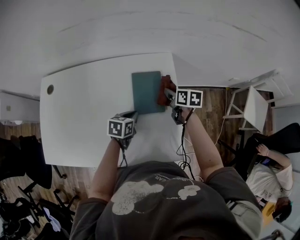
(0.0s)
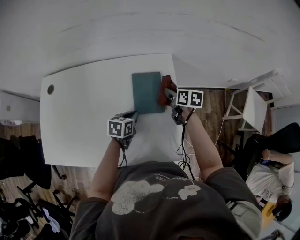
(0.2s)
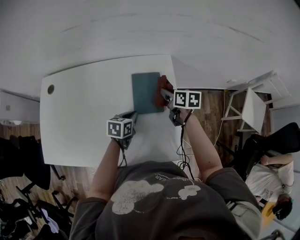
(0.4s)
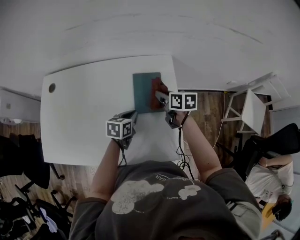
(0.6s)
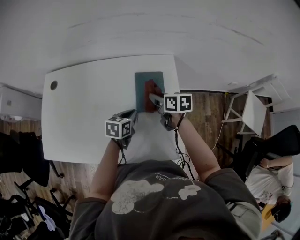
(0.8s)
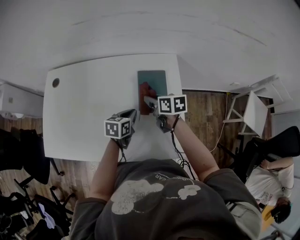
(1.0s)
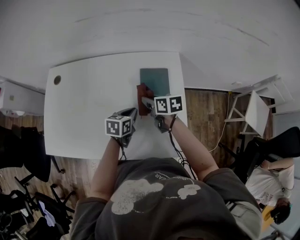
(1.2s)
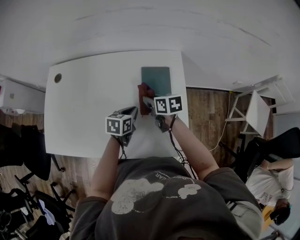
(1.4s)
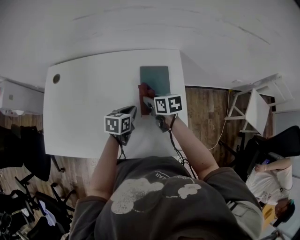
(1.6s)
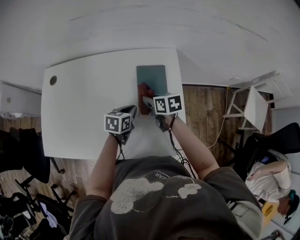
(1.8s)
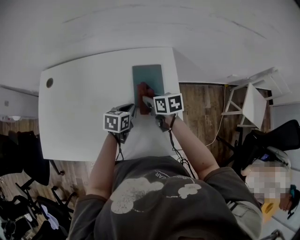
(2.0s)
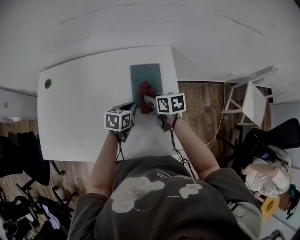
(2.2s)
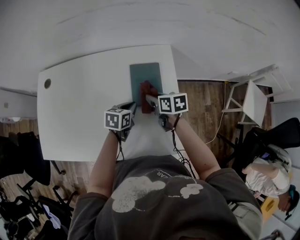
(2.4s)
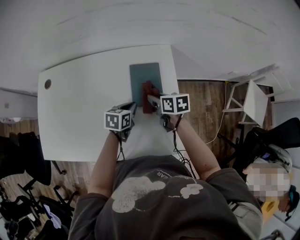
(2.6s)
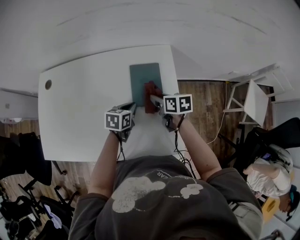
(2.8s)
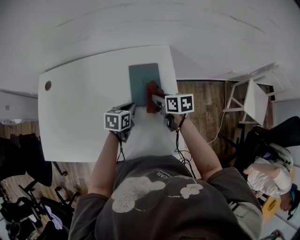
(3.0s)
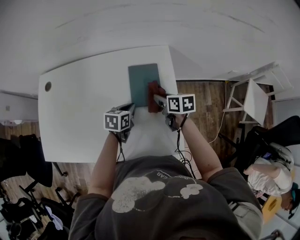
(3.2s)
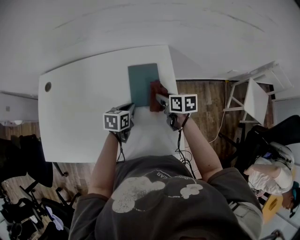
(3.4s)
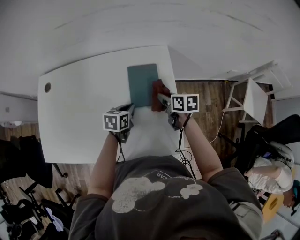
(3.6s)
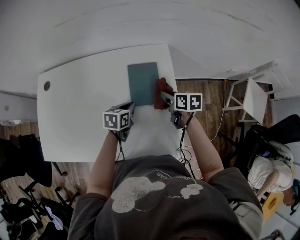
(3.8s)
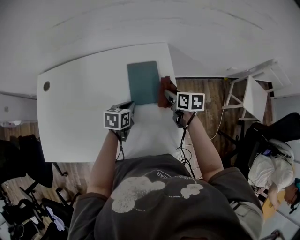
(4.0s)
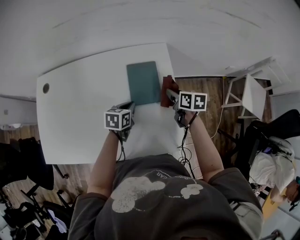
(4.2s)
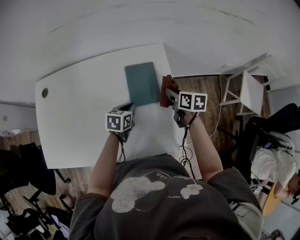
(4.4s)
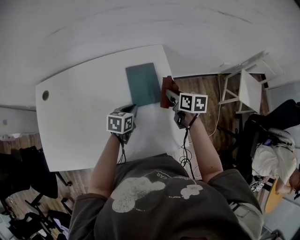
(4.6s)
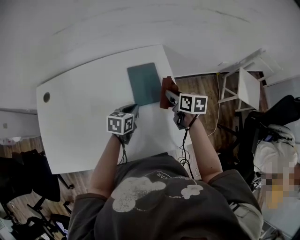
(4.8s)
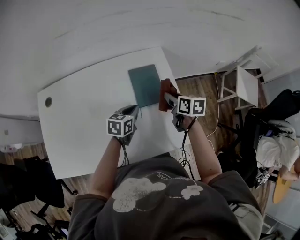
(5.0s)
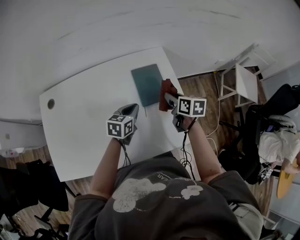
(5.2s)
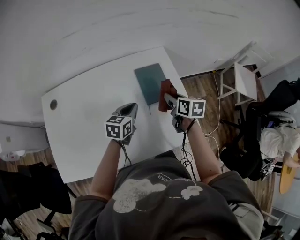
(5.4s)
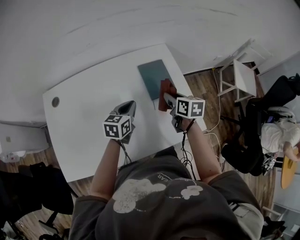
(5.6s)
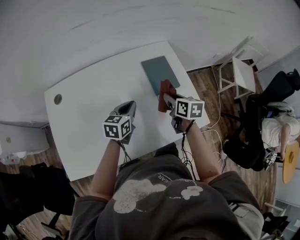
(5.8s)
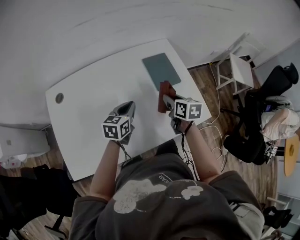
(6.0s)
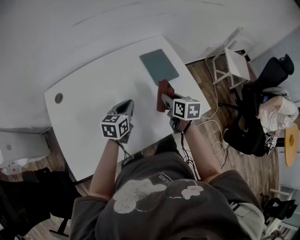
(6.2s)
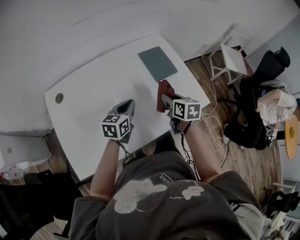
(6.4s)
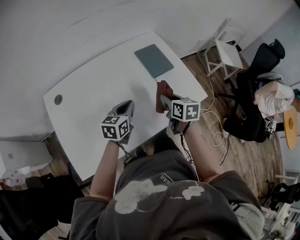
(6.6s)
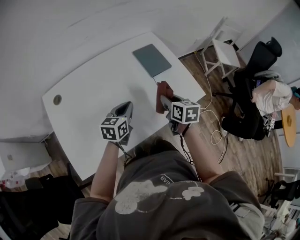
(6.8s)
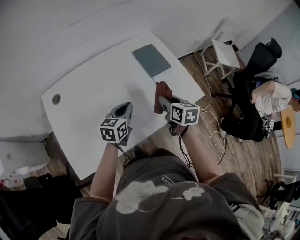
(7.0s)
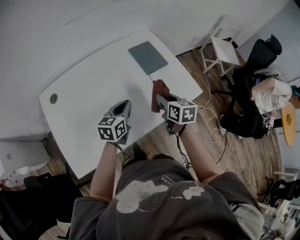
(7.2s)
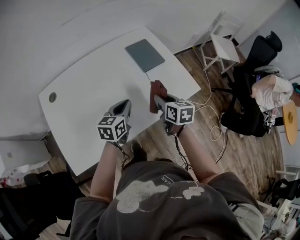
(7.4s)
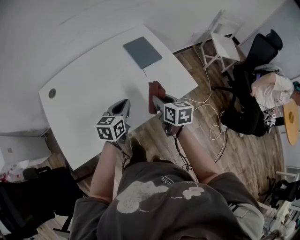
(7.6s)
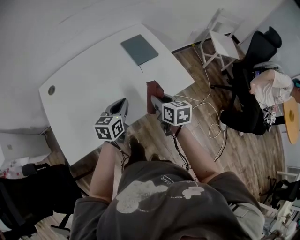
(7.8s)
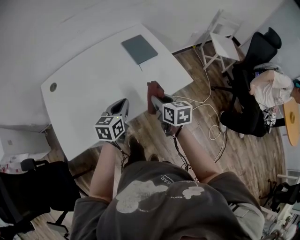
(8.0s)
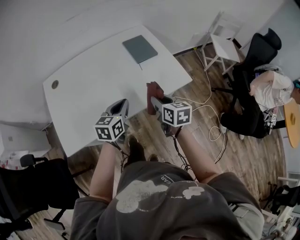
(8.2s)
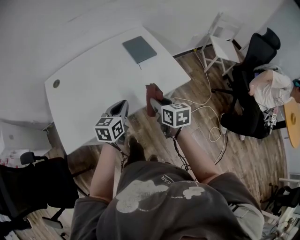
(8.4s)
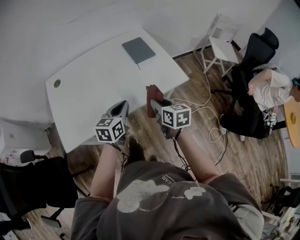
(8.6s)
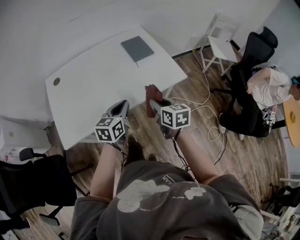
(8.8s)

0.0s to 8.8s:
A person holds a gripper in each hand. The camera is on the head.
0.0s to 1.4s: The left gripper shifts by some 5 cm; the right gripper moves to the left and backward, approximately 15 cm.
1.4s to 3.0s: The right gripper travels to the right by about 10 cm. Meanwhile the left gripper changes place by approximately 5 cm.
3.0s to 4.4s: The right gripper shifts roughly 10 cm to the right.
4.4s to 5.8s: The right gripper moves to the left and backward, roughly 20 cm. The left gripper travels to the left, upward and backward by approximately 20 cm.
5.8s to 7.4s: The grippers both shift backward by about 15 cm.
7.4s to 8.8s: The right gripper heads backward, covering some 15 cm; the left gripper travels backward and to the right by some 15 cm.

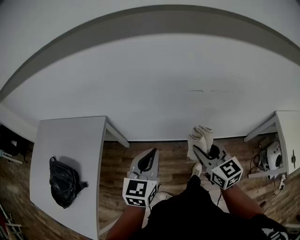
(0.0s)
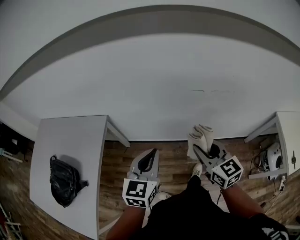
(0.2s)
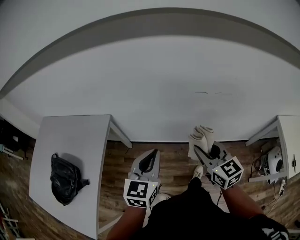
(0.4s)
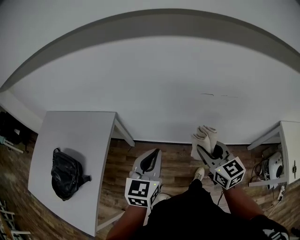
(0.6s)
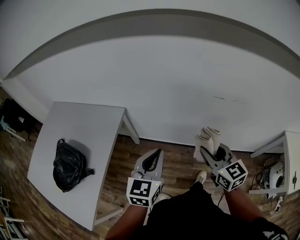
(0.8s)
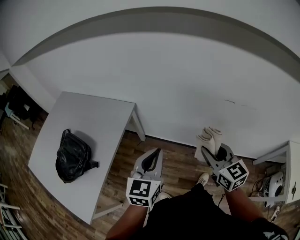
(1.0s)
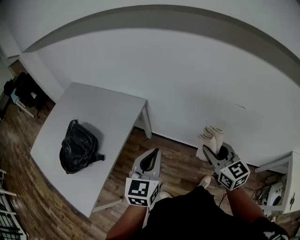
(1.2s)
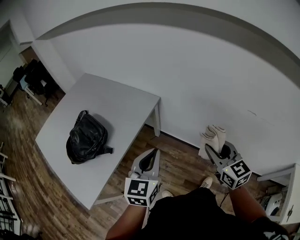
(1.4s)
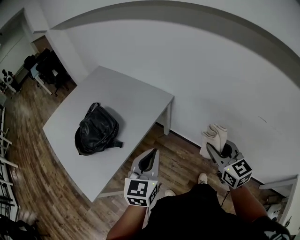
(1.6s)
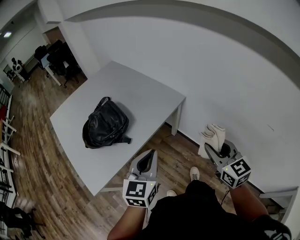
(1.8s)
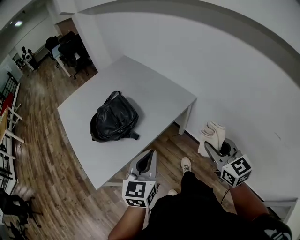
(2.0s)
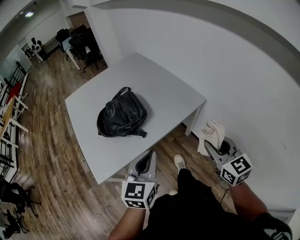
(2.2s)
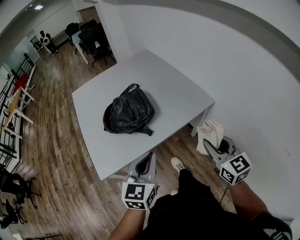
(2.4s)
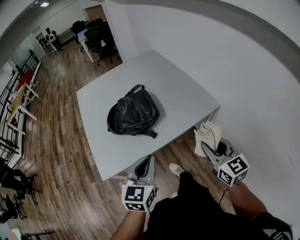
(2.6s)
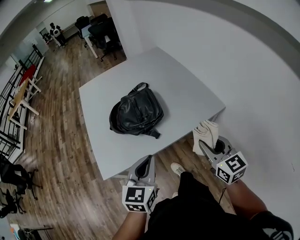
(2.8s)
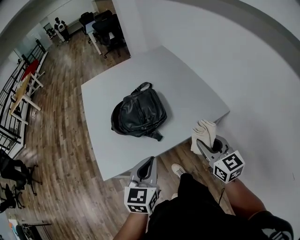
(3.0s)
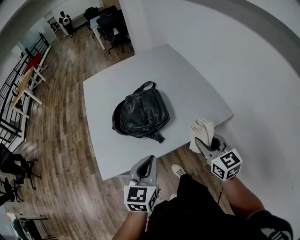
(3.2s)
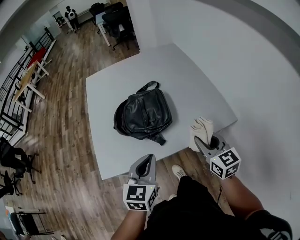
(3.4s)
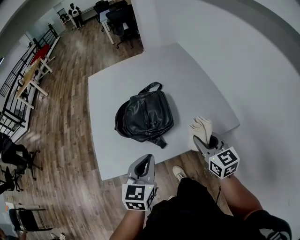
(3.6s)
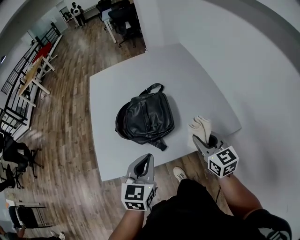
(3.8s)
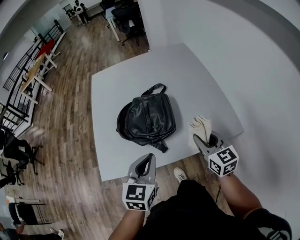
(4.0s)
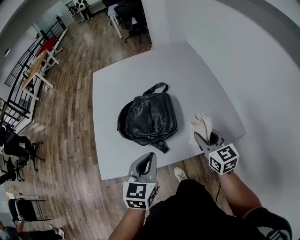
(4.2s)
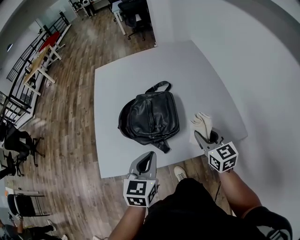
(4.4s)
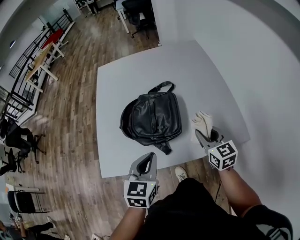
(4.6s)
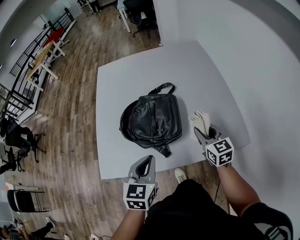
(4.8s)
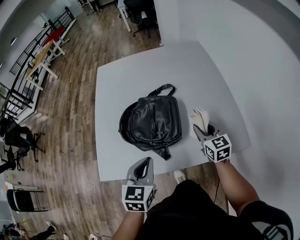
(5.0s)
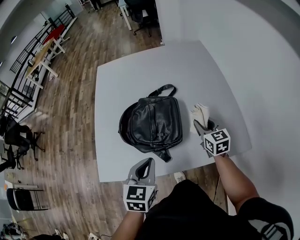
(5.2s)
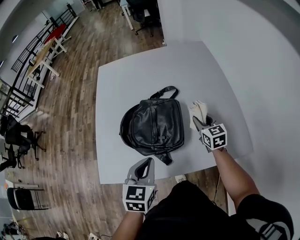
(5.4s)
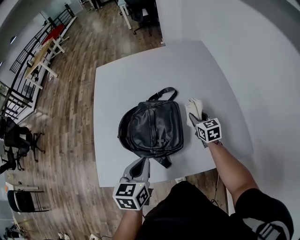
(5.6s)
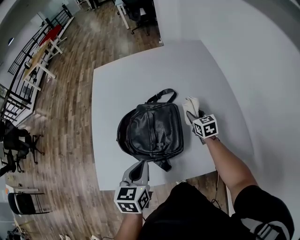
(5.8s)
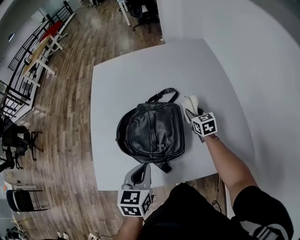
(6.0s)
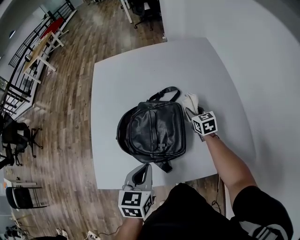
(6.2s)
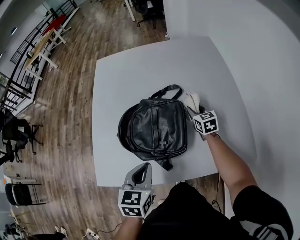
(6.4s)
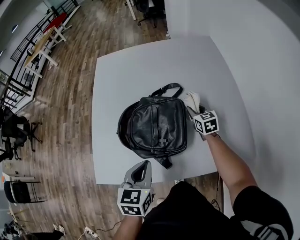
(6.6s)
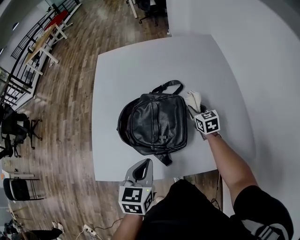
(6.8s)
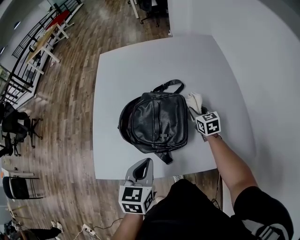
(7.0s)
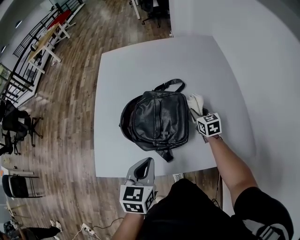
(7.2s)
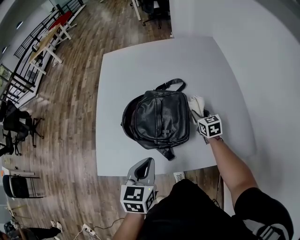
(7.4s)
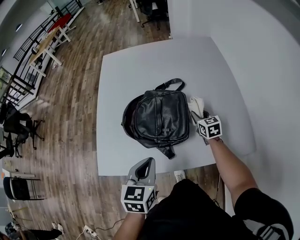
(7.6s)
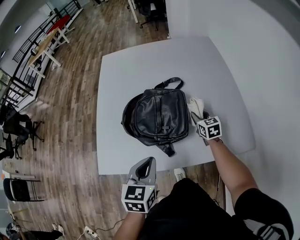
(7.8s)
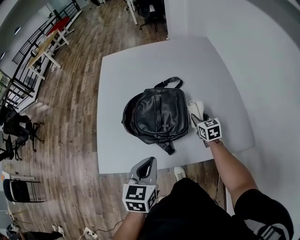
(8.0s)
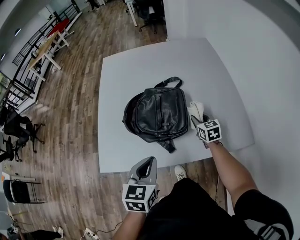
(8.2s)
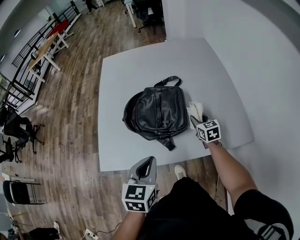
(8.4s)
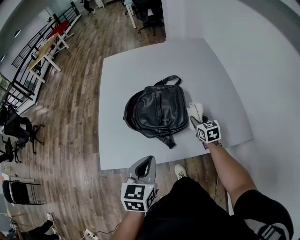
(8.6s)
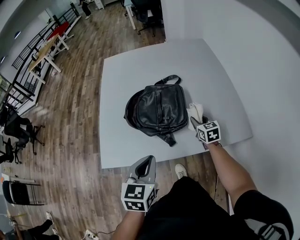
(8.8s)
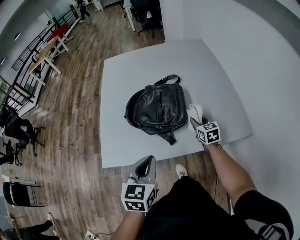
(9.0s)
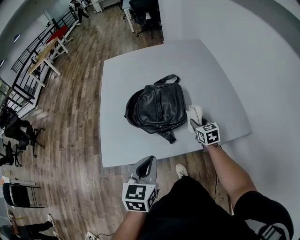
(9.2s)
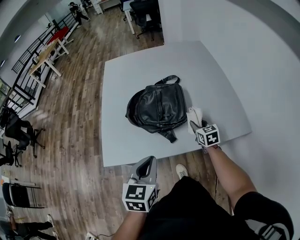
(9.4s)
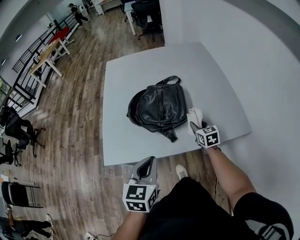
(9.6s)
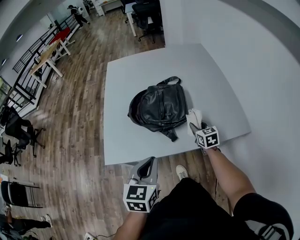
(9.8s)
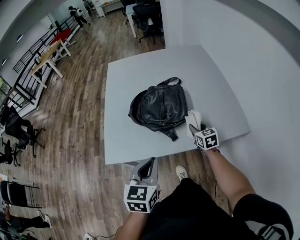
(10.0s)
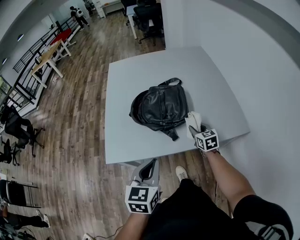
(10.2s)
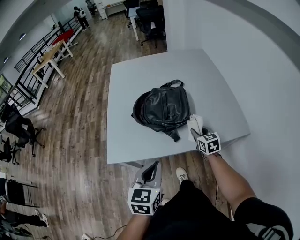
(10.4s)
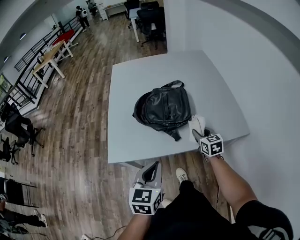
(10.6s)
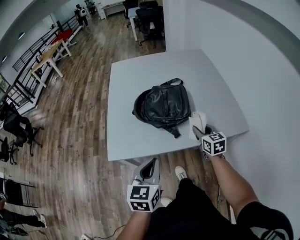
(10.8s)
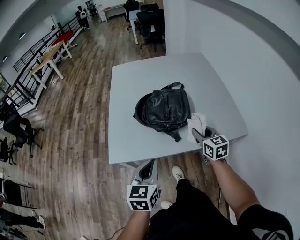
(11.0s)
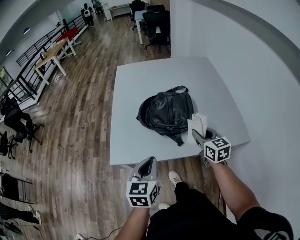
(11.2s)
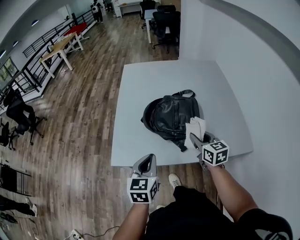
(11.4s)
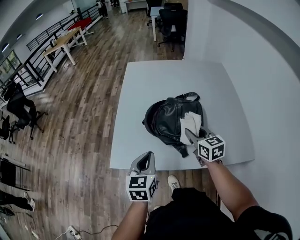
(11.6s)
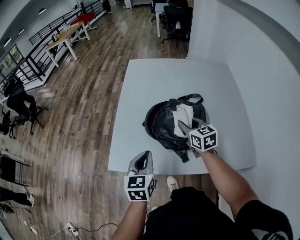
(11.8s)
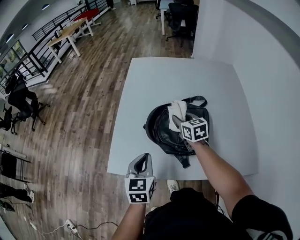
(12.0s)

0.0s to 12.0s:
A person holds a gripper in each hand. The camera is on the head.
0.0s to 1.6s: The left gripper changes place by roughly 30 cm, and swivels approximately 30 degrees; the right gripper shifts by about 25 cm, and swivels about 30 degrees.
1.6s to 3.0s: The left gripper shifts by about 20 cm, and swivels roughly 30 degrees. The right gripper changes place by roughly 30 cm, and turns by some 30 degrees.
3.0s to 4.4s: The right gripper goes approximately 20 cm forward, while the left gripper is displaced forward by about 15 cm.
4.4s to 6.0s: The left gripper travels forward and downward by roughly 10 cm. The right gripper goes approximately 30 cm forward and downward.
6.0s to 7.6s: Both grippers move backward, roughly 5 cm.
7.6s to 9.0s: Both grippers travel together backward, roughly 10 cm.
9.0s to 10.4s: The grippers both shift backward by about 10 cm.
10.4s to 12.0s: The two grippers go some 25 cm forward and to the left.

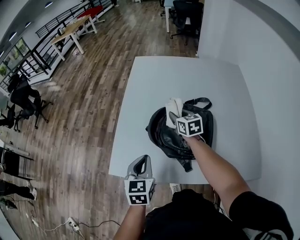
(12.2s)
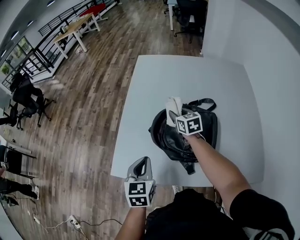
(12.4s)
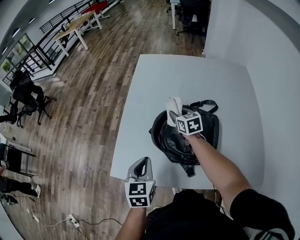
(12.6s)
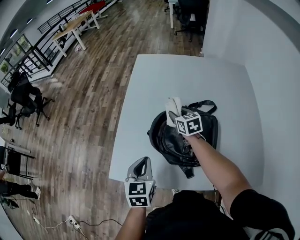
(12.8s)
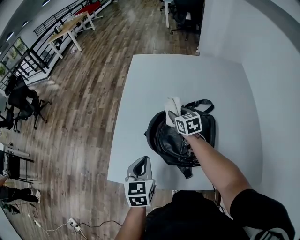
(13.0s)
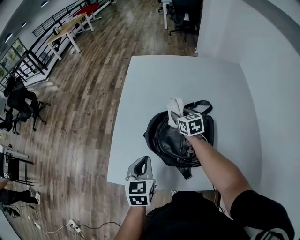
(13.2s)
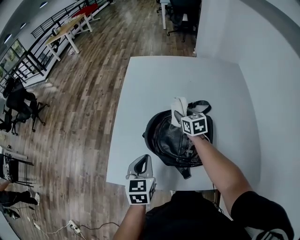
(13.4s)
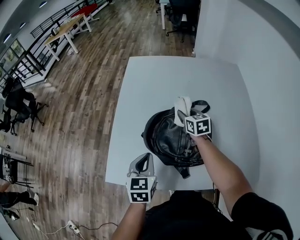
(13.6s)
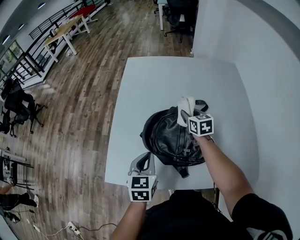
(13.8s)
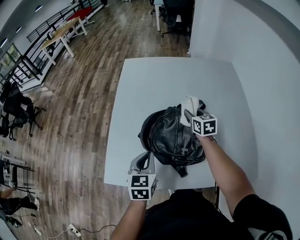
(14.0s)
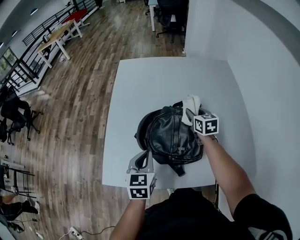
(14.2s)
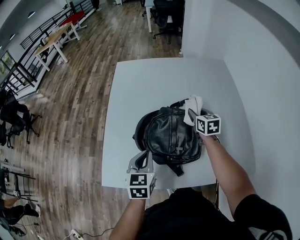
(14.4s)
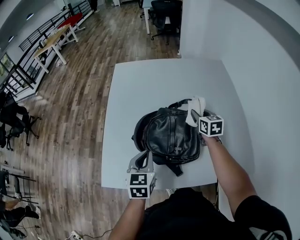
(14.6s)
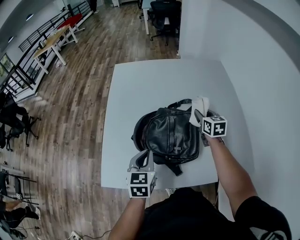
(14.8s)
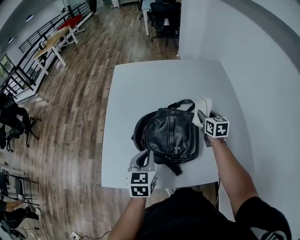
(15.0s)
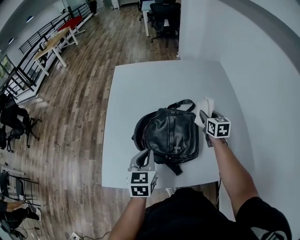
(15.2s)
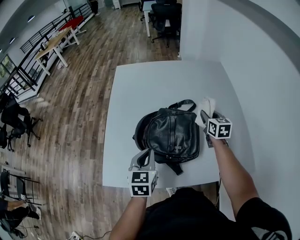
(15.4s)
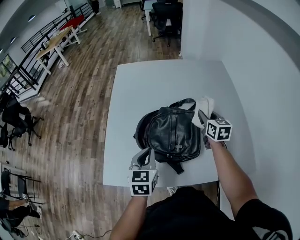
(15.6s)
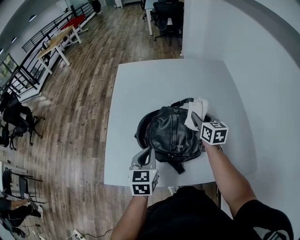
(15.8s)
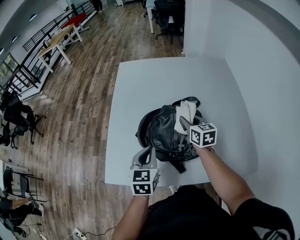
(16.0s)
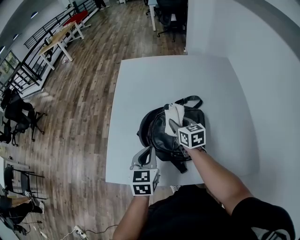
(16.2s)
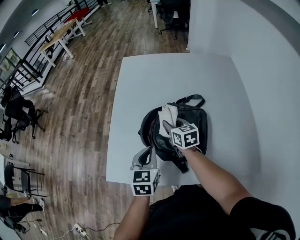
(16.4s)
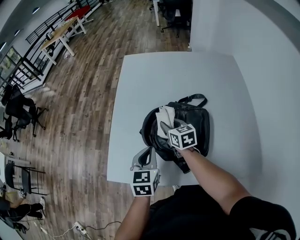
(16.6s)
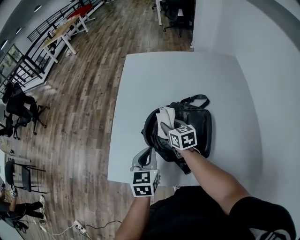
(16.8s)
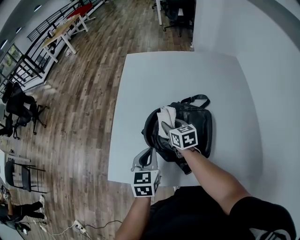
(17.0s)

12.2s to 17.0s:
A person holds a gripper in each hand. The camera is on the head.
12.2s to 13.8s: The right gripper heads to the right, covering roughly 10 cm, while the left gripper travels forward by about 5 cm.
13.8s to 15.4s: The right gripper shifts approximately 15 cm to the right.
15.4s to 17.0s: The right gripper is displaced to the left by roughly 25 cm, and swivels about 30 degrees.
